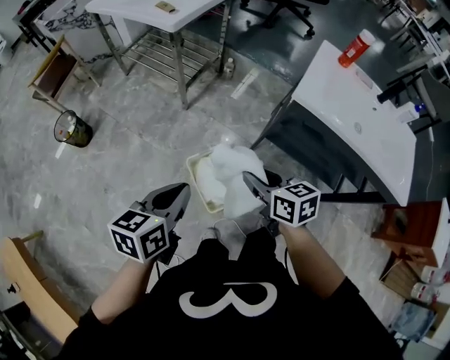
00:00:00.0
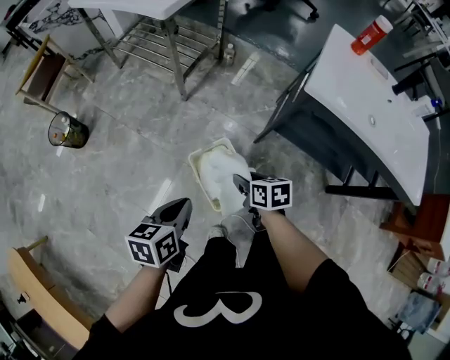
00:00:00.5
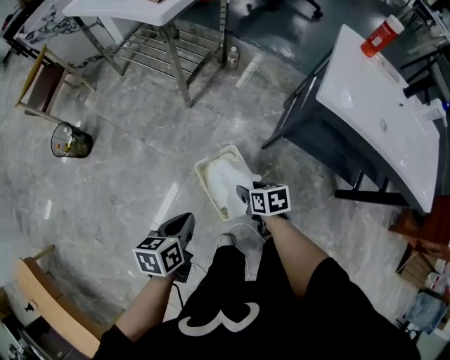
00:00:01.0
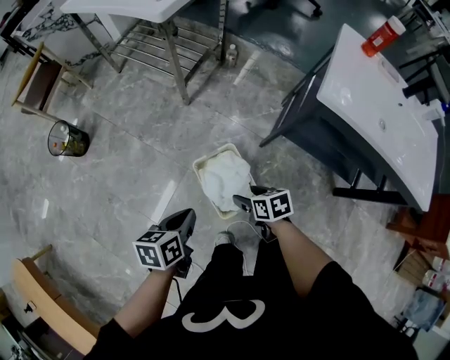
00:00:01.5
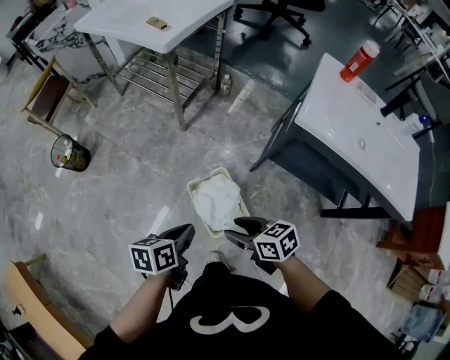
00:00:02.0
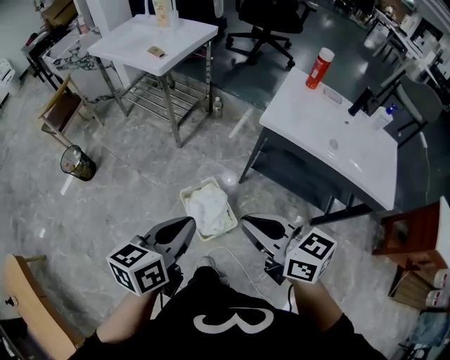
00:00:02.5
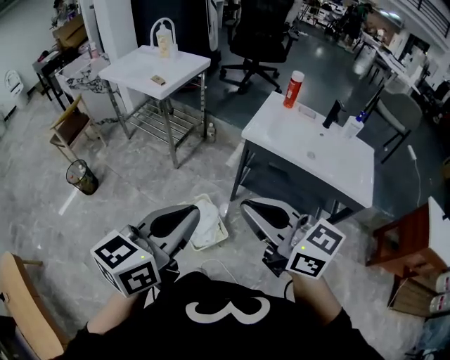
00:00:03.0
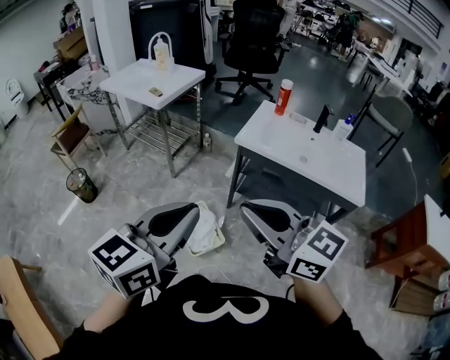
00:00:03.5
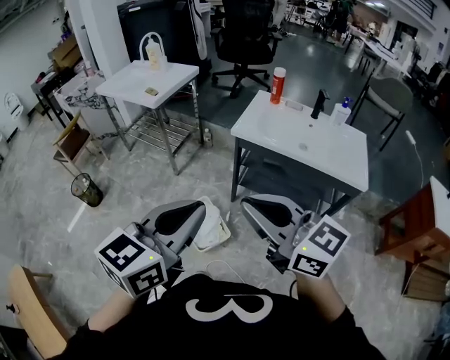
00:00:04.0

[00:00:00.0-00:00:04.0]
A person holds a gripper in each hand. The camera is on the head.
00:00:00.0 to 00:00:02.0: The left gripper moves downward, some 15 cm, and swivels approximately 20 degrees. The right gripper shifts roughly 10 cm downward, to the left and backward.
00:00:02.0 to 00:00:04.0: The right gripper goes about 50 cm upward and backward, tips its fingers upward by some 40 degrees, and closes; the left gripper moves upward, backward and to the right, roughly 50 cm, and twists roughly 50 degrees clockwise, seen from behind.

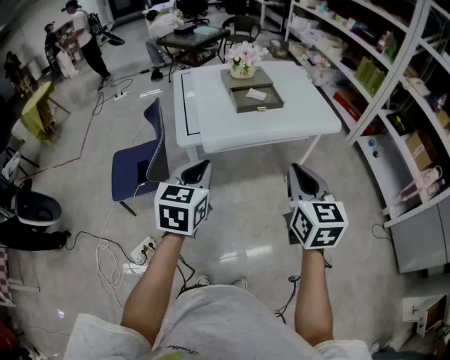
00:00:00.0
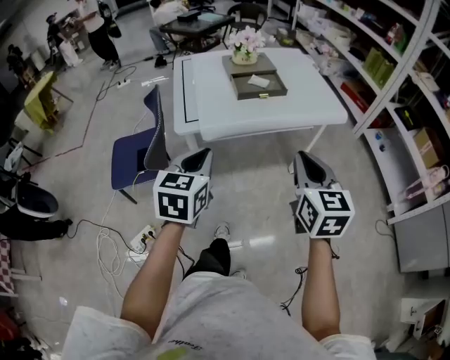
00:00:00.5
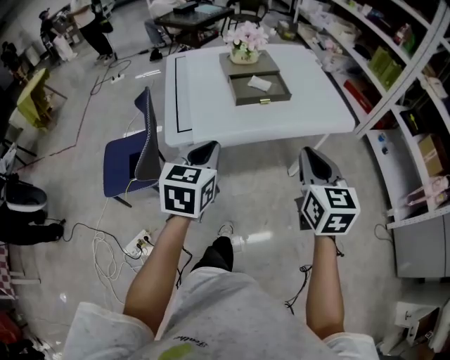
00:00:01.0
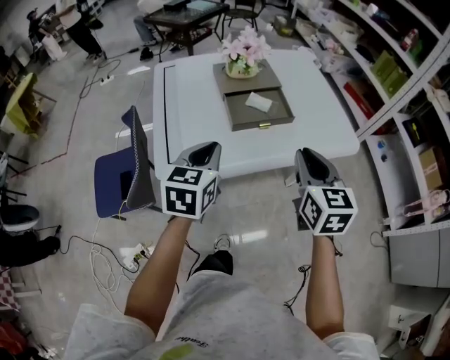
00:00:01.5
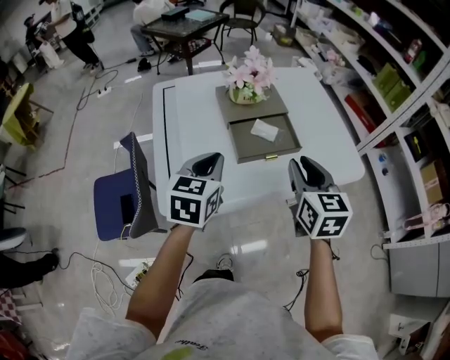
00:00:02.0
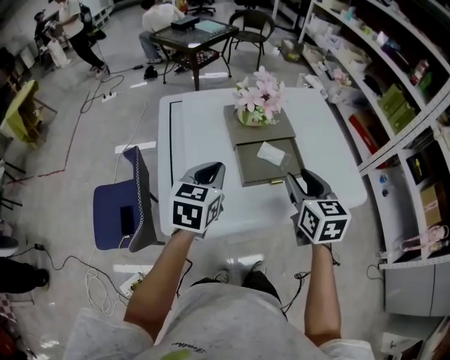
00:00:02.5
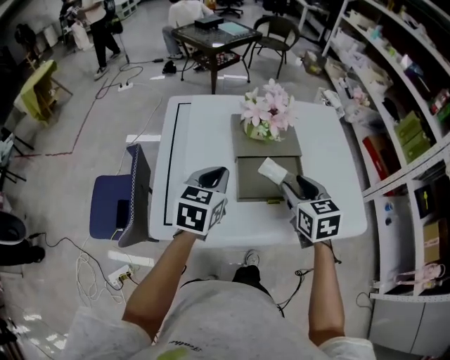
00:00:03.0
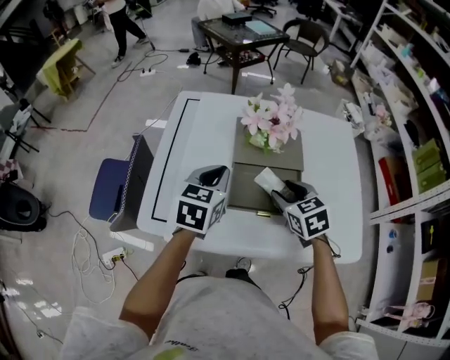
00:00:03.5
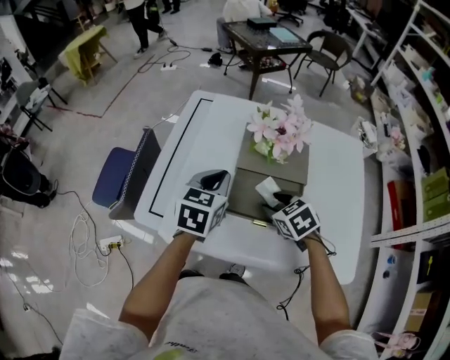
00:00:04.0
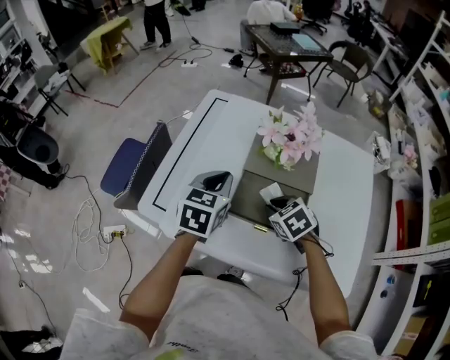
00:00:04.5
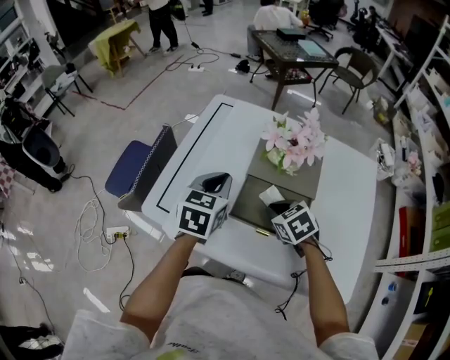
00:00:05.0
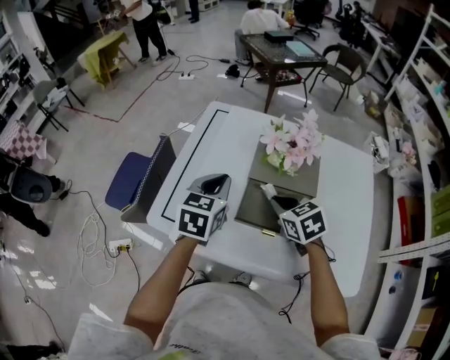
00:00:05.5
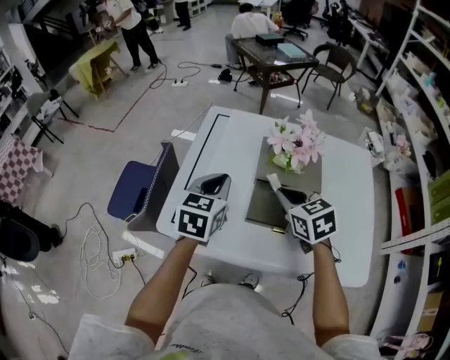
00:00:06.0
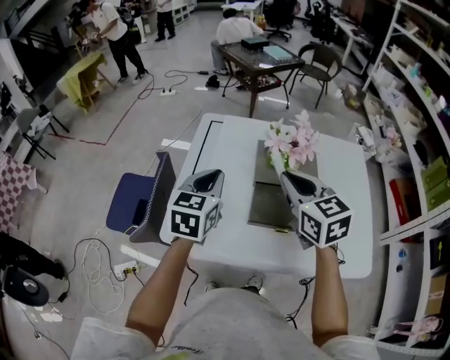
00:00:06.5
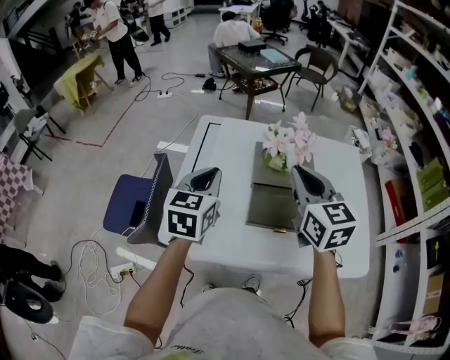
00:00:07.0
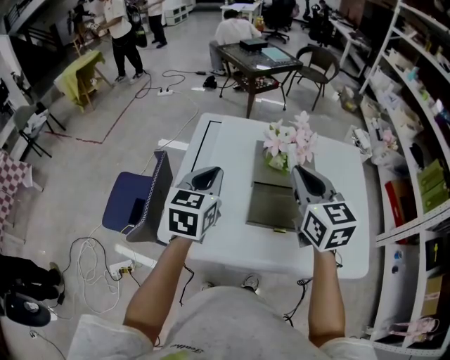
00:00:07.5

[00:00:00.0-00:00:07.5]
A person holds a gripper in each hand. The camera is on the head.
00:00:00.0 to 00:00:02.0: Both grippers move forward, some 35 cm. The right gripper opens.
00:00:02.0 to 00:00:04.0: The left gripper shifts by some 15 cm, and changes its angle by roughly 20 degrees. The right gripper goes roughly 15 cm downward, points its fingers approximately 30 degrees further downward, and opens its fingers.
00:00:04.0 to 00:00:05.5: The right gripper is displaced upward by approximately 5 cm, and closes.
00:00:05.5 to 00:00:07.5: The left gripper shifts roughly 5 cm upward. The right gripper heads upward, covering some 20 cm, and angles its fingers upward, by about 30 degrees.

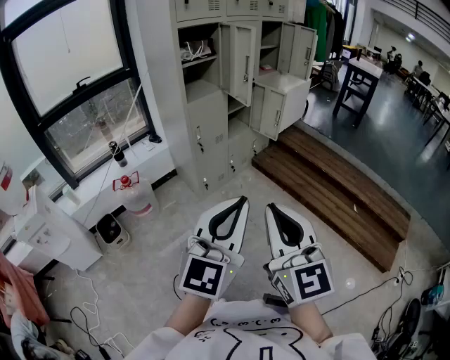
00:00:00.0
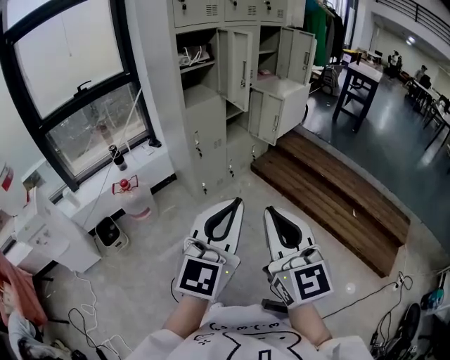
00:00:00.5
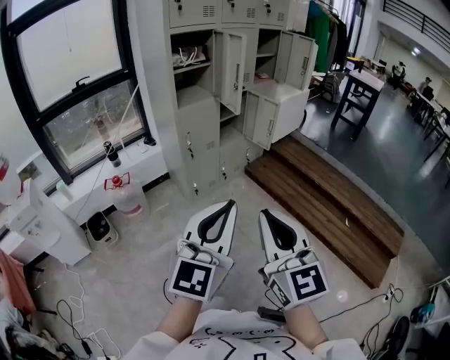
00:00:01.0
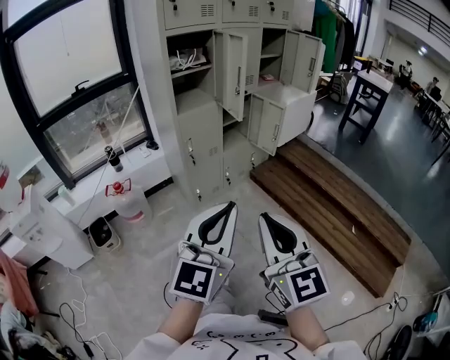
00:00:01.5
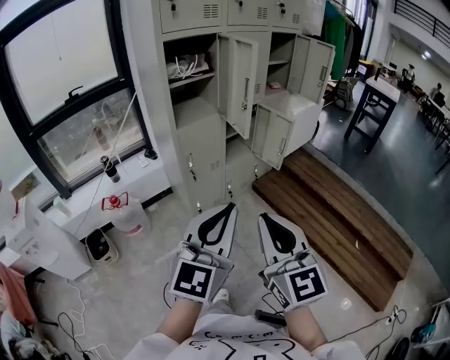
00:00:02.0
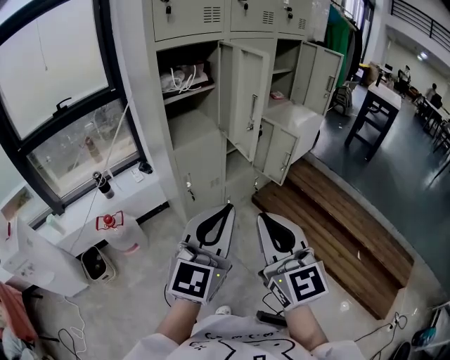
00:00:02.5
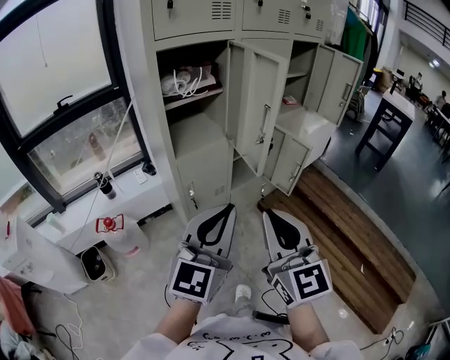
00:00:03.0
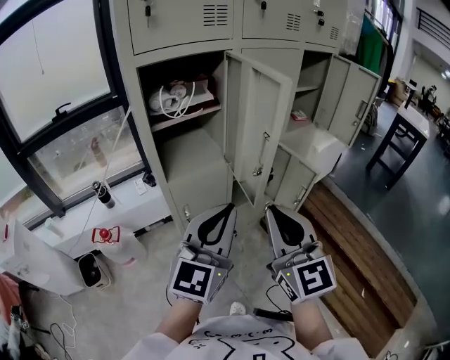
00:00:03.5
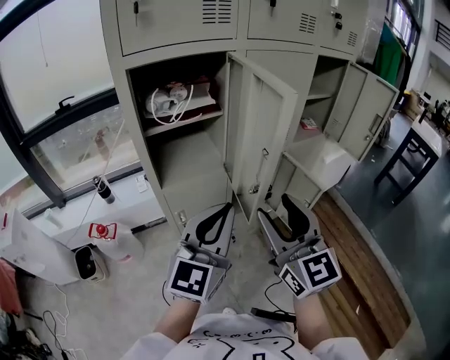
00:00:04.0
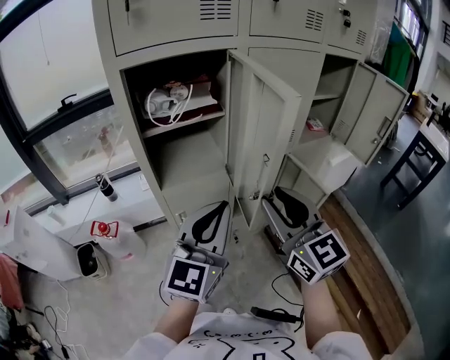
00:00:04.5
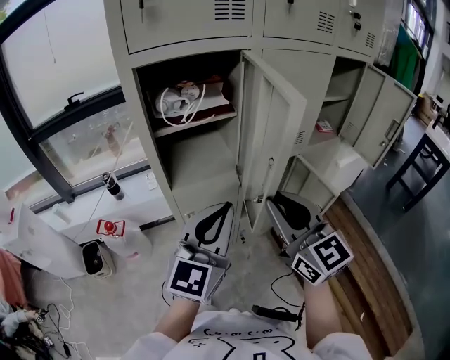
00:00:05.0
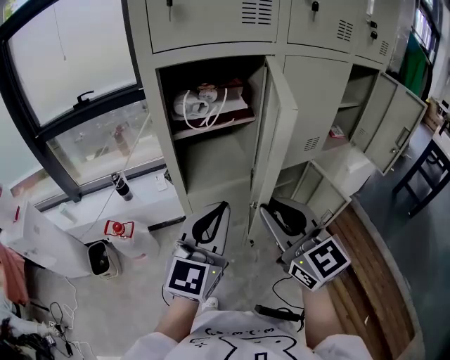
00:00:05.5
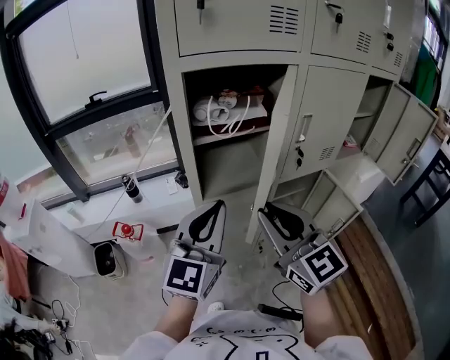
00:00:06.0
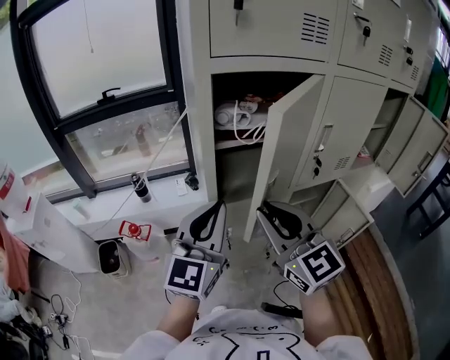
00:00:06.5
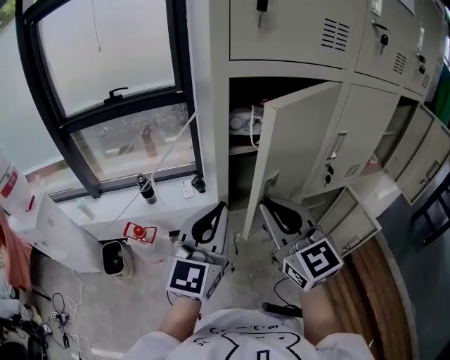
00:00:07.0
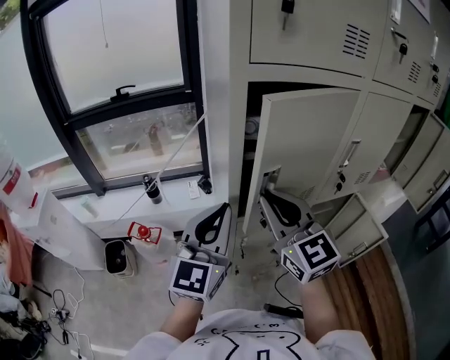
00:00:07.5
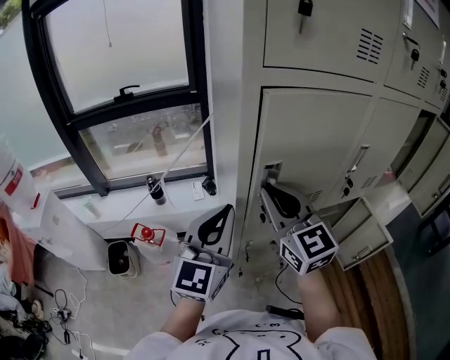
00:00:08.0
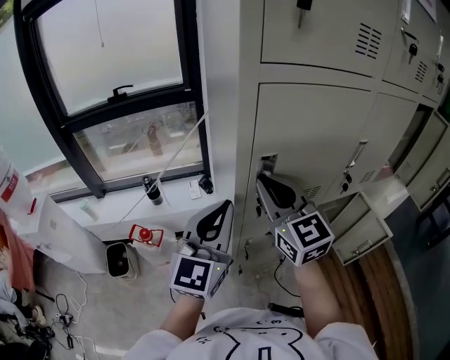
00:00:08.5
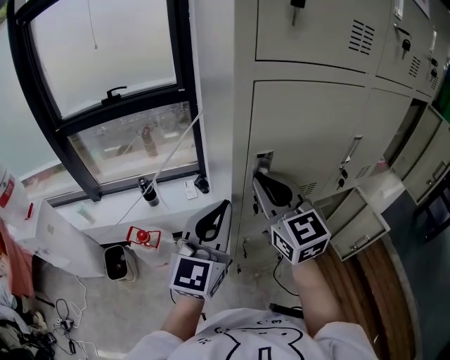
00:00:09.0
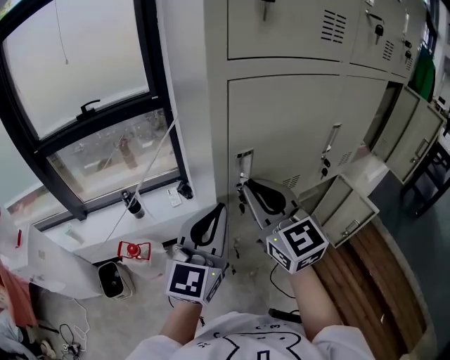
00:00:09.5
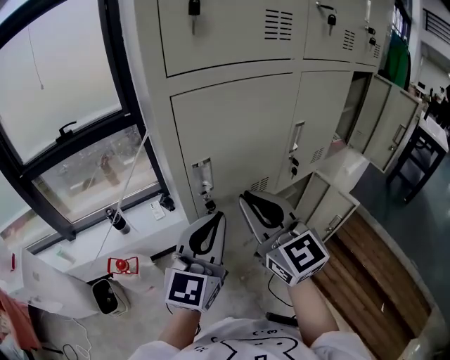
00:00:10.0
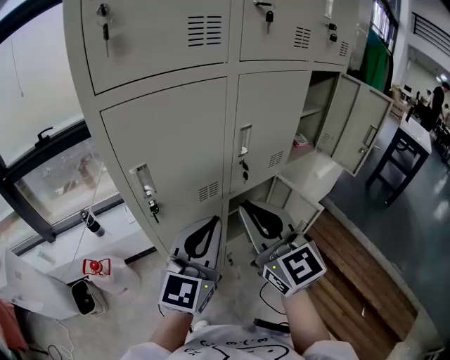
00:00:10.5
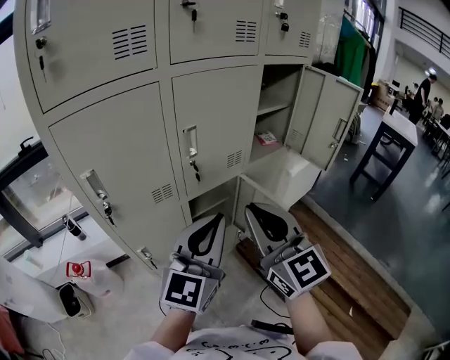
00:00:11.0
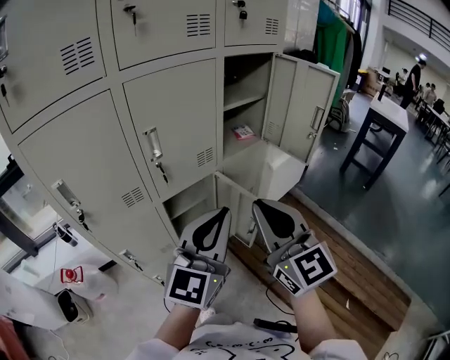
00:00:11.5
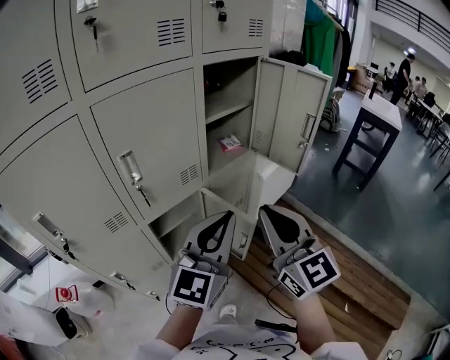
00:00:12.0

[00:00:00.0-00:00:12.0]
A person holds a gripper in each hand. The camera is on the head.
00:00:00.0 to 00:00:02.0: The grippers both shift forward by some 20 cm.
00:00:02.0 to 00:00:04.0: The two grippers go some 40 cm forward. The right gripper opens up.
00:00:04.0 to 00:00:06.0: The two grippers go about 15 cm to the left and forward. The right gripper closes up.
00:00:06.0 to 00:00:08.0: The right gripper heads forward and to the left, covering some 20 cm. Meanwhile the left gripper shifts about 10 cm to the left and forward.
00:00:08.0 to 00:00:10.0: Both grippers travel together to the right, roughly 10 cm.
00:00:10.0 to 00:00:12.0: Both grippers are carried to the right, about 40 cm.

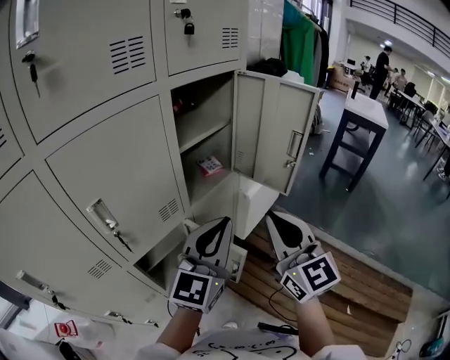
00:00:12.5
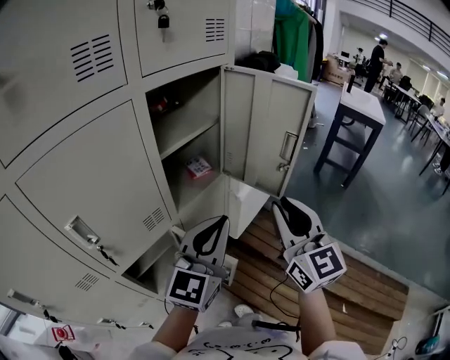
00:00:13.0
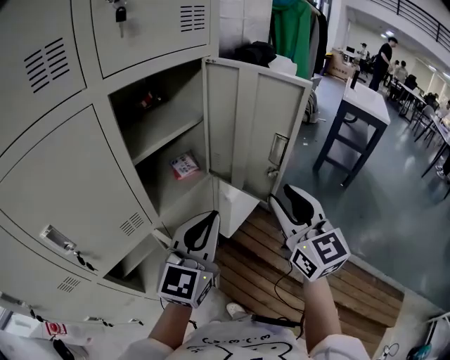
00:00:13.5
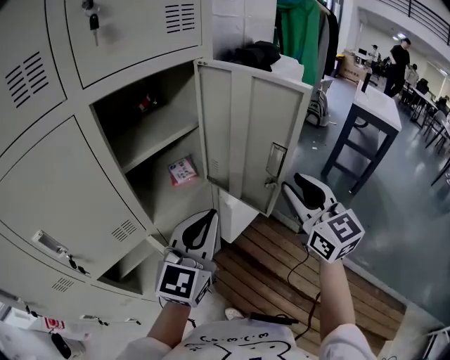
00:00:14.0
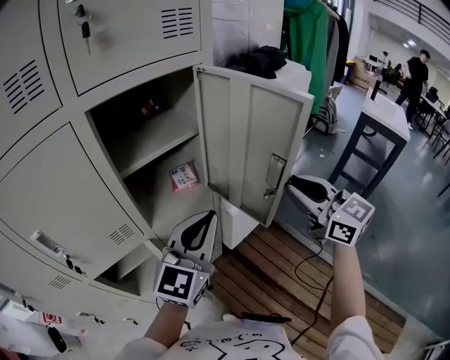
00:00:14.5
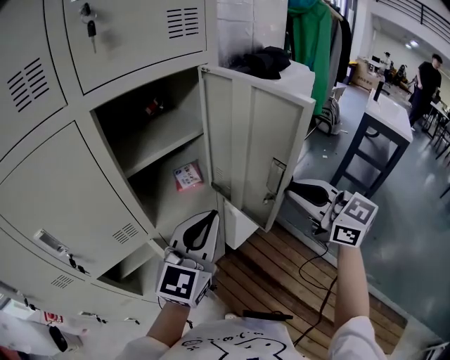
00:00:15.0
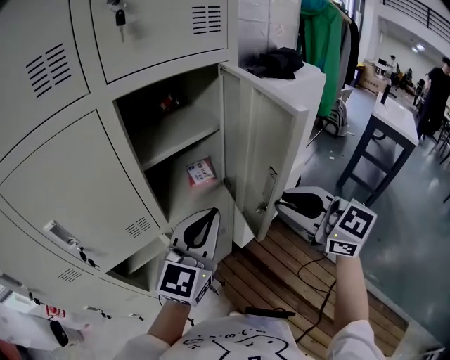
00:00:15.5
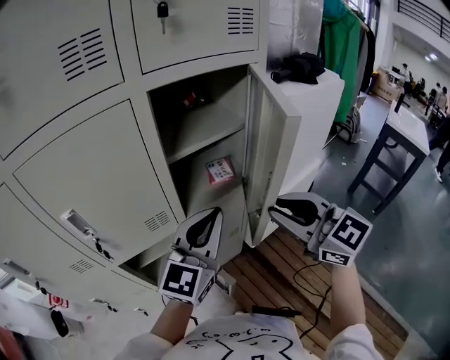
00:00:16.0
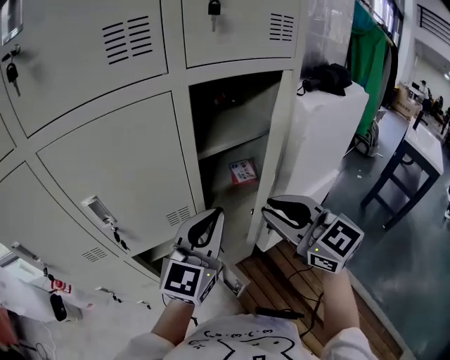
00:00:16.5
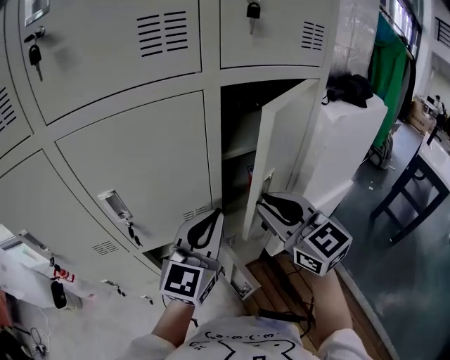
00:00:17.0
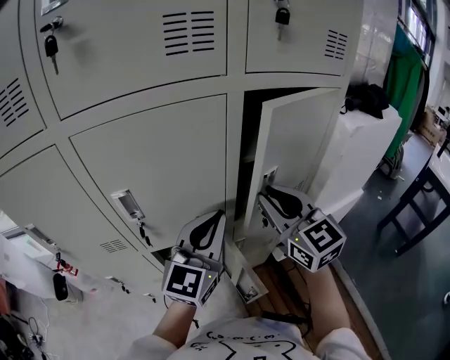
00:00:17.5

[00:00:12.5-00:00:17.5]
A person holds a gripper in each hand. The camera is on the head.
00:00:12.5 to 00:00:15.0: Both grippers travel together forward and to the right, roughly 20 cm. The right gripper rotates about 30 degrees.
00:00:15.0 to 00:00:17.5: The grippers both shift to the left by approximately 25 cm. The left gripper turns by some 20 degrees.
